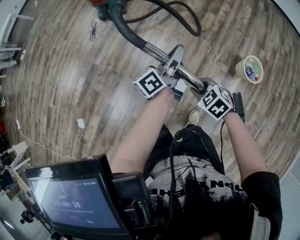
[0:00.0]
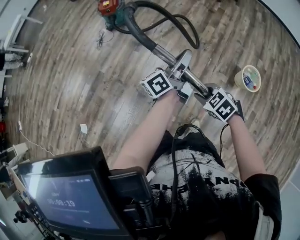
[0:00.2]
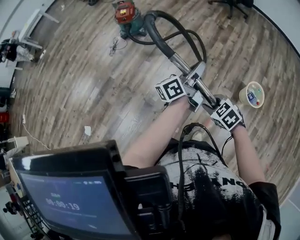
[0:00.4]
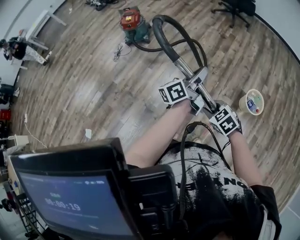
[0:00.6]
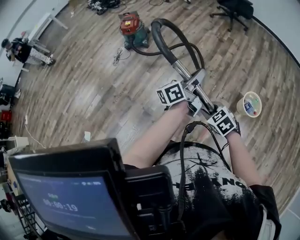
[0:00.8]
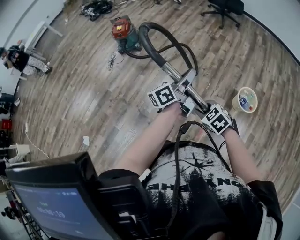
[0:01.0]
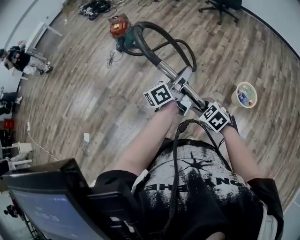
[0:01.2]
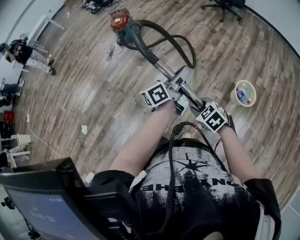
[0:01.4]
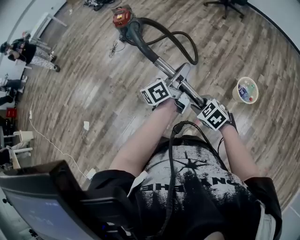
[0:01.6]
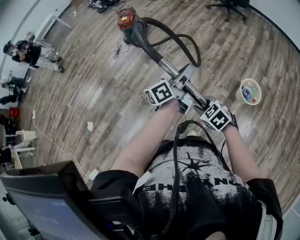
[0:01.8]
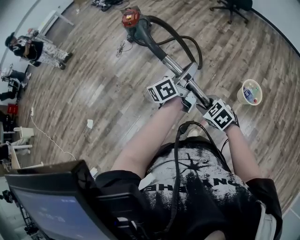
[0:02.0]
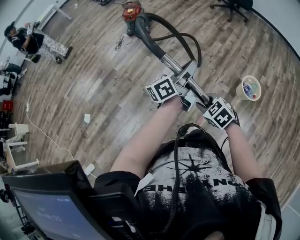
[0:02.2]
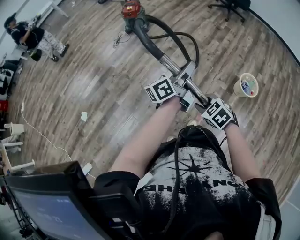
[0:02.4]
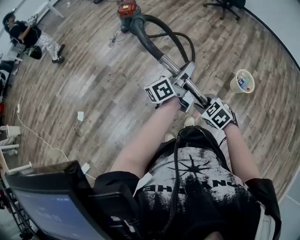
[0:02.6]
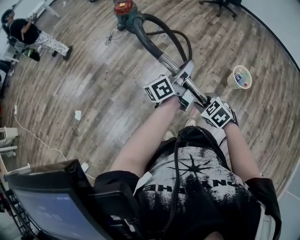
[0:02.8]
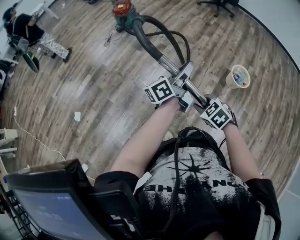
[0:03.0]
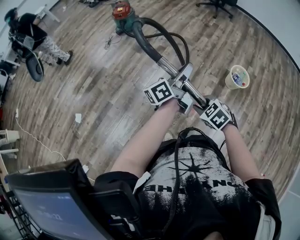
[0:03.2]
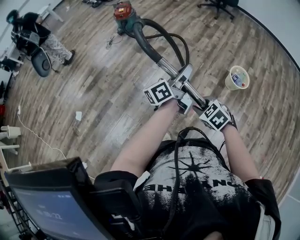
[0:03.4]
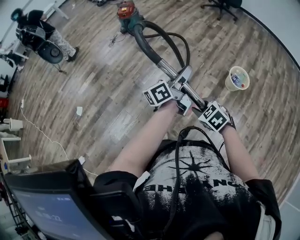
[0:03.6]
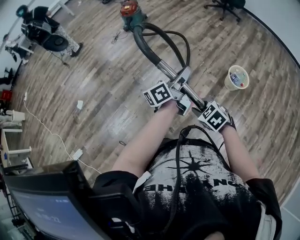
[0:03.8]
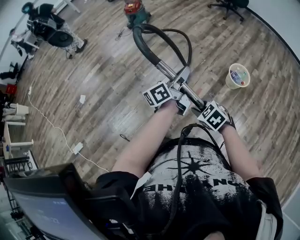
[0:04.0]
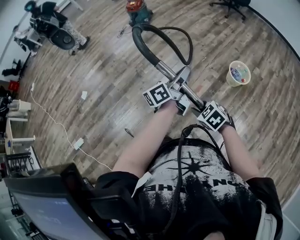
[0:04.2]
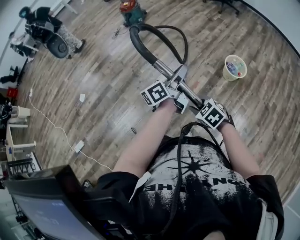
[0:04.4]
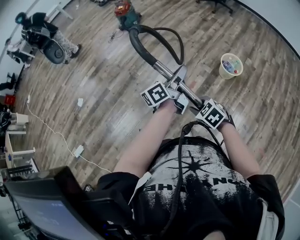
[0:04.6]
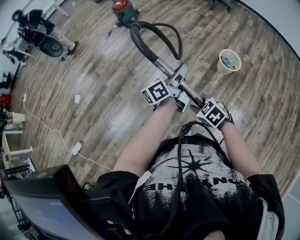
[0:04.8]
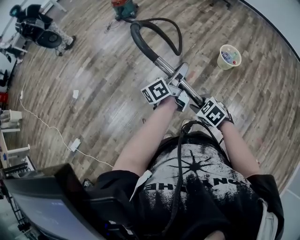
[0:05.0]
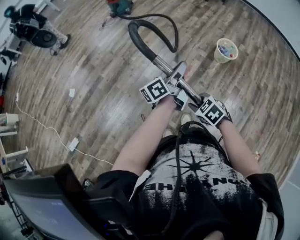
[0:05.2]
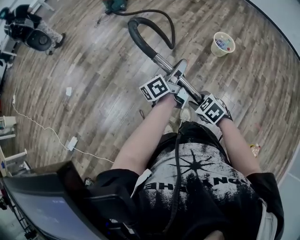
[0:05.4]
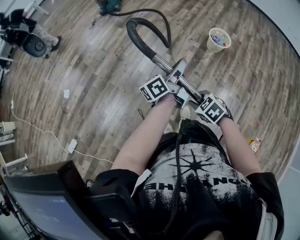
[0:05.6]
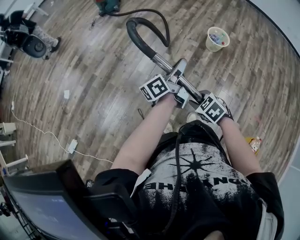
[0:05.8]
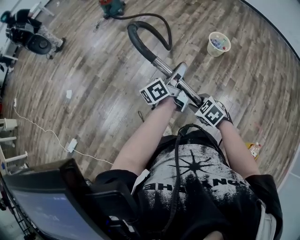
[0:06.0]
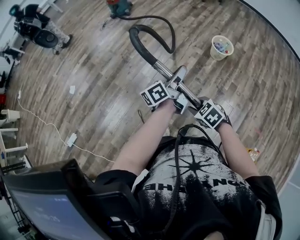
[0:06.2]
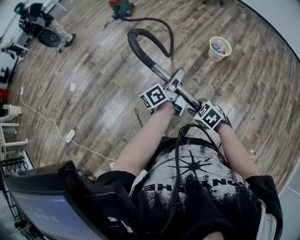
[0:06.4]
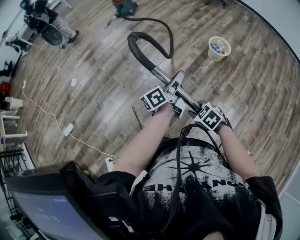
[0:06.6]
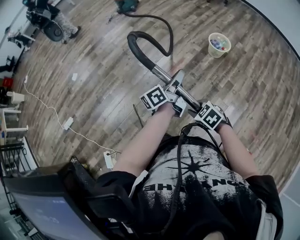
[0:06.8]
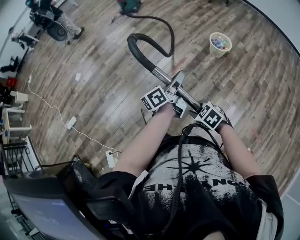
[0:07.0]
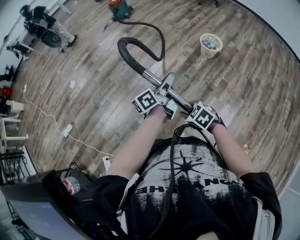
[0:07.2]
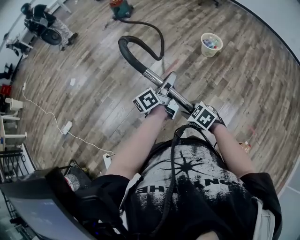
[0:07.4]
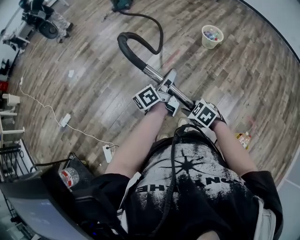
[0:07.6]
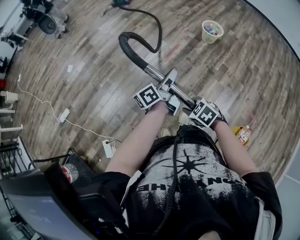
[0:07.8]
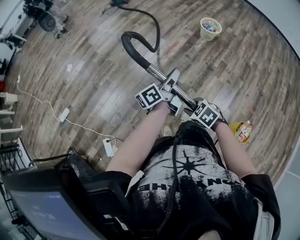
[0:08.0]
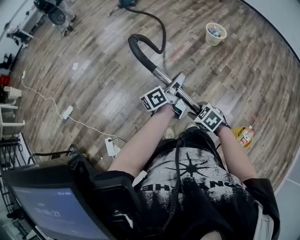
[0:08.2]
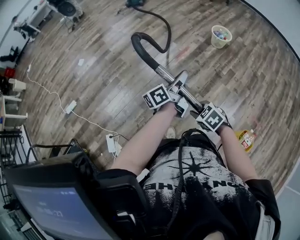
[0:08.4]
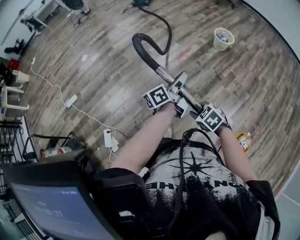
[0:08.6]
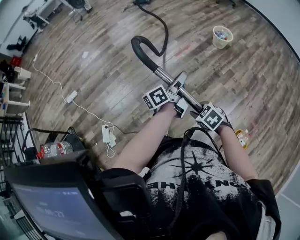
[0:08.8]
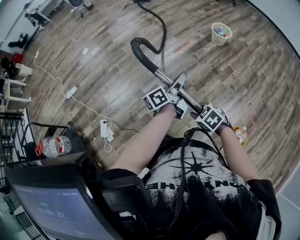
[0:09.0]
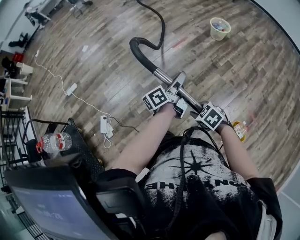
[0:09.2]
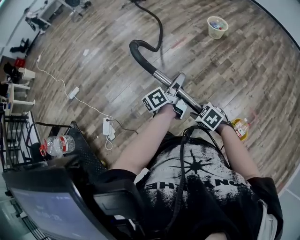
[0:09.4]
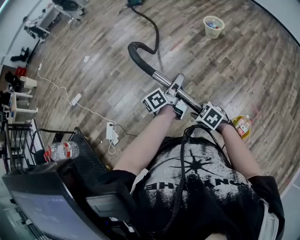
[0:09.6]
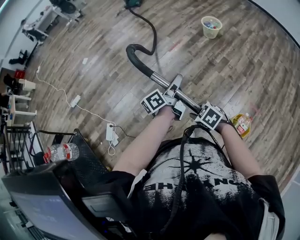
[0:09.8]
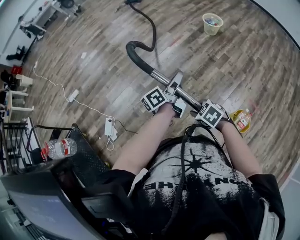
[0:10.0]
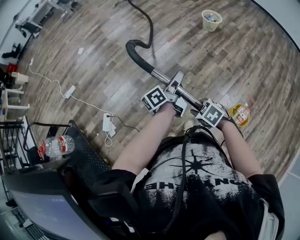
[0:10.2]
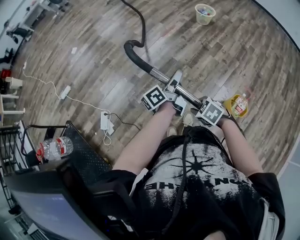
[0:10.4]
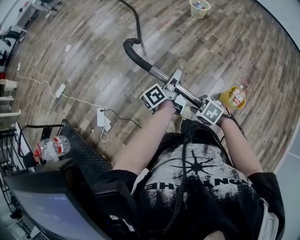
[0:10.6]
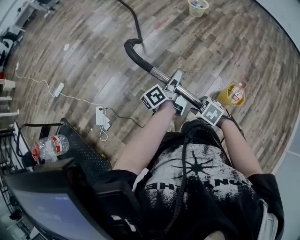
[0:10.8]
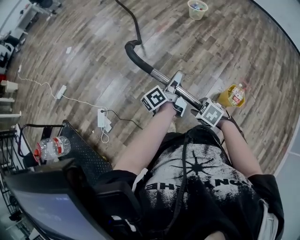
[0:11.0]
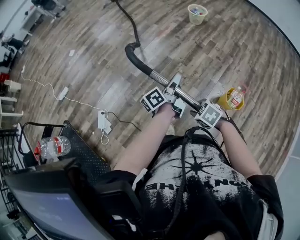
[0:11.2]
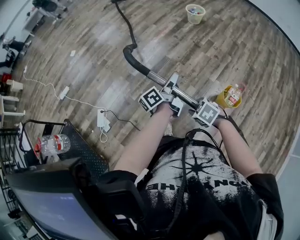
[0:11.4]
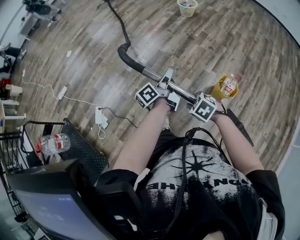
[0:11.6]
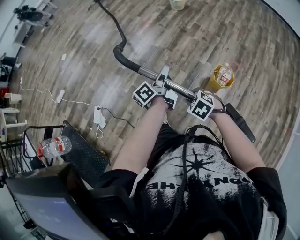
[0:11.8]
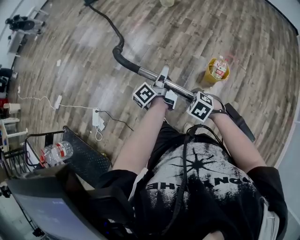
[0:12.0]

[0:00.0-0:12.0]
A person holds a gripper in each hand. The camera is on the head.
0:00.0 to 0:01.6: Both grippers move to the right, backward and upward, some 20 cm.
0:01.6 to 0:03.0: The two grippers go about 20 cm backward and to the left.
0:03.0 to 0:04.4: The grippers both shift backward and to the right by some 25 cm.
0:04.4 to 0:06.0: The two grippers go some 15 cm backward.
0:06.0 to 0:07.6: Both grippers travel together backward, roughly 30 cm.
0:07.6 to 0:09.0: Both grippers travel together backward, some 20 cm.
0:09.0 to 0:10.4: Both grippers move backward and to the left, about 20 cm.
0:10.4 to 0:12.0: The grippers both shift backward and to the right by about 25 cm.

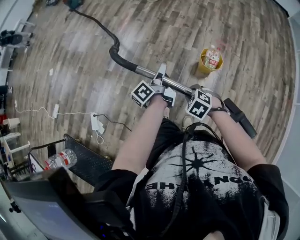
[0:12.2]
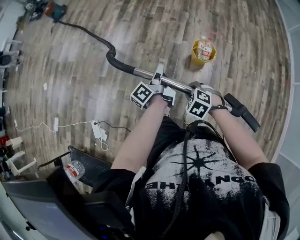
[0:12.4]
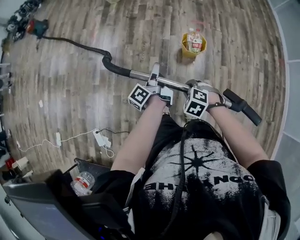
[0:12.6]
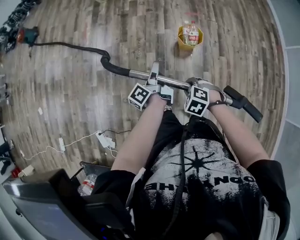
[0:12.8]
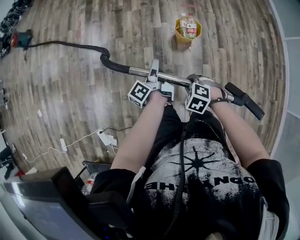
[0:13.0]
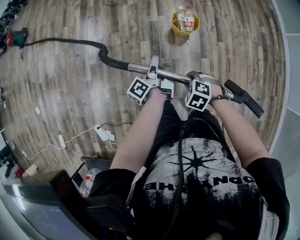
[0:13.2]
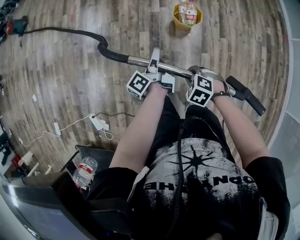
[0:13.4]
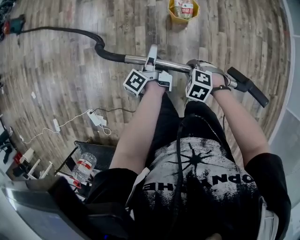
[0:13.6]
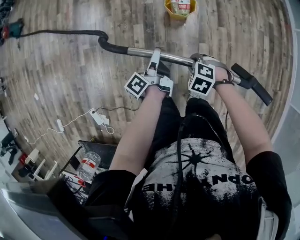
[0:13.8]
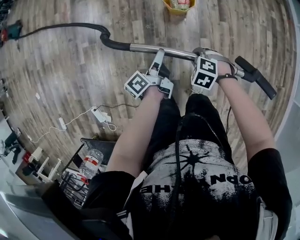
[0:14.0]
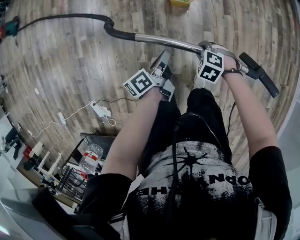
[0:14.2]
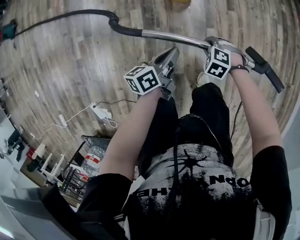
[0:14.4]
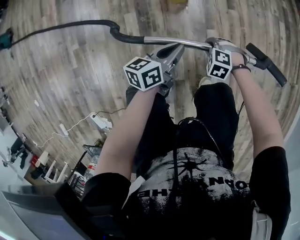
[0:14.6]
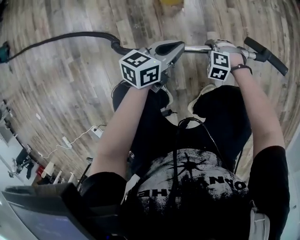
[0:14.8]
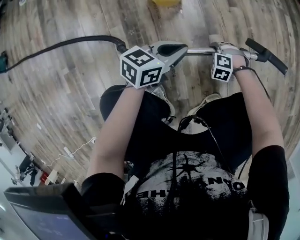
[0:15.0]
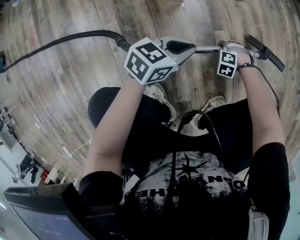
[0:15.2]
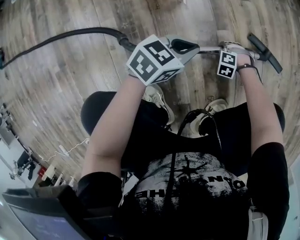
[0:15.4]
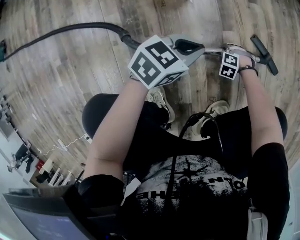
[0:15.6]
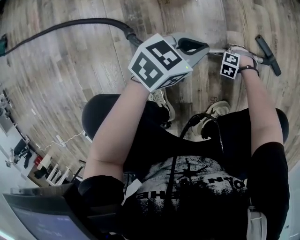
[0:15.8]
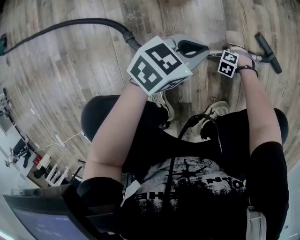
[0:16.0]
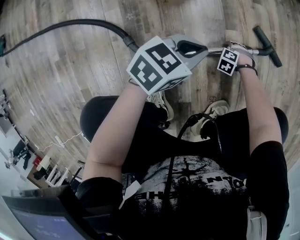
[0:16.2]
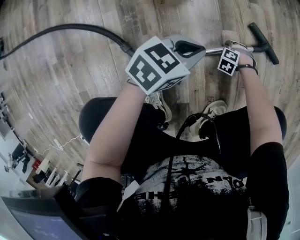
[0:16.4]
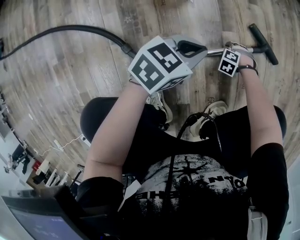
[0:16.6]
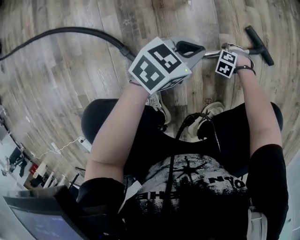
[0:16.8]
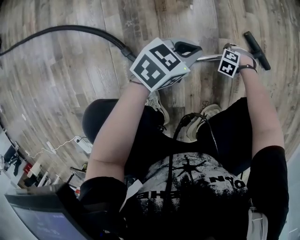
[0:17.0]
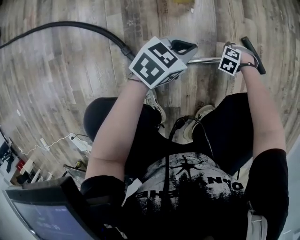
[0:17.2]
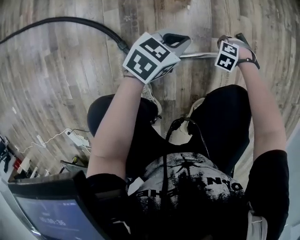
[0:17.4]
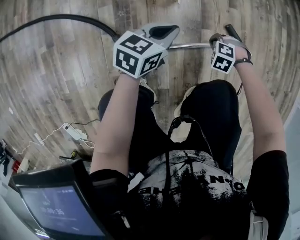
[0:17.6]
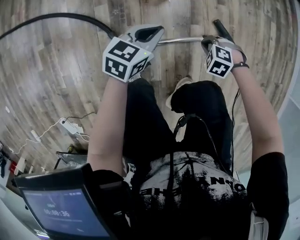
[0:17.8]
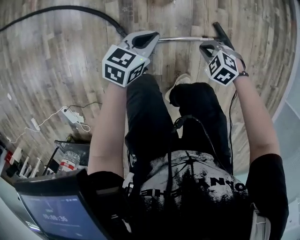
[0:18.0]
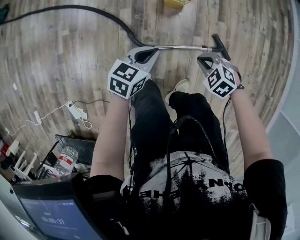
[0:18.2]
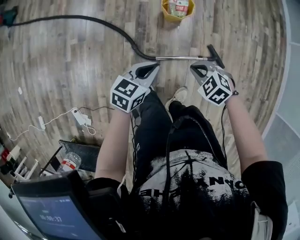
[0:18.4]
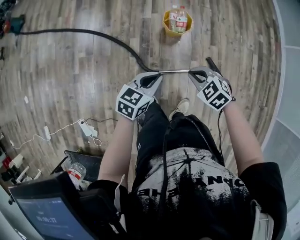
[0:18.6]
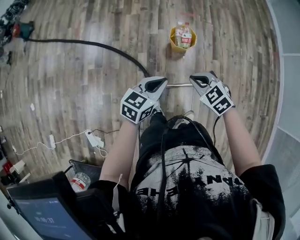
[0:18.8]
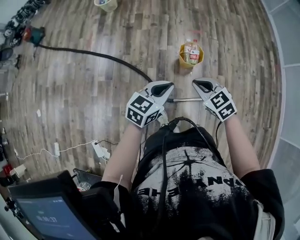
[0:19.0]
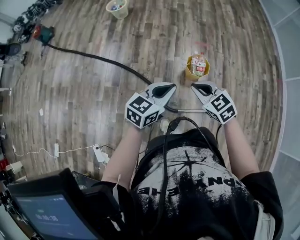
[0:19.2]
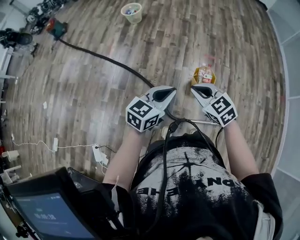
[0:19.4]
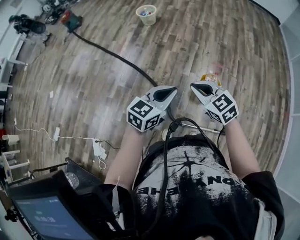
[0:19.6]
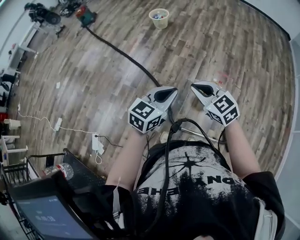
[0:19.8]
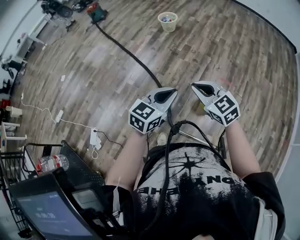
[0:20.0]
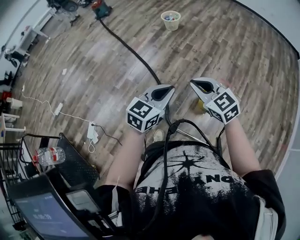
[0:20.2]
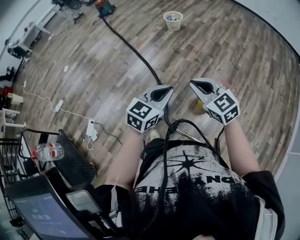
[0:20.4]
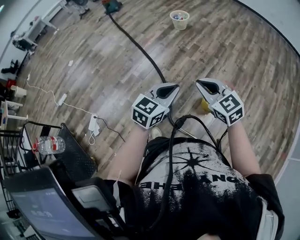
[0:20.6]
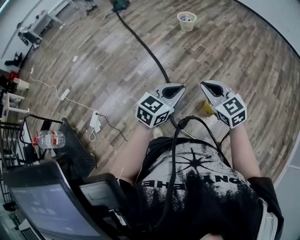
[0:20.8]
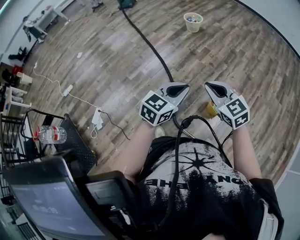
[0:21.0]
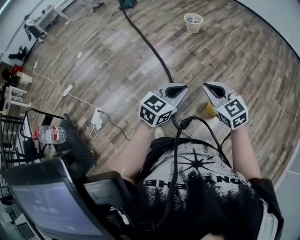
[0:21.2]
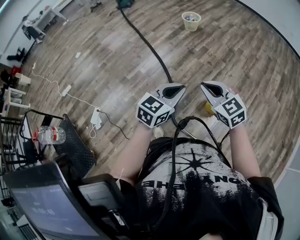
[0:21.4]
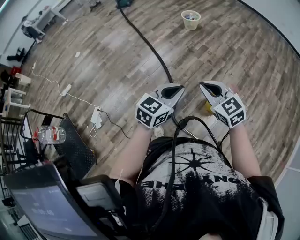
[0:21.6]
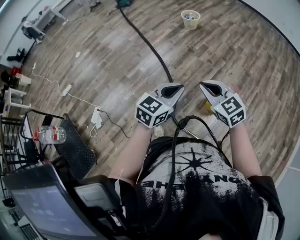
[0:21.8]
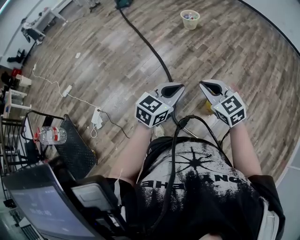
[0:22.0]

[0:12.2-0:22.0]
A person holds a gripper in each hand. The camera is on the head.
0:12.2 to 0:13.6: The grippers both shift downward by some 10 cm. The left gripper opens up.
0:13.6 to 0:15.0: The two grippers go about 40 cm downward. The left gripper turns by roughly 100 degrees, and closes its fingers.
0:15.0 to 0:16.4: The right gripper heads downward, covering about 20 cm, and opens its fingers; the left gripper travels downward by approximately 10 cm.
0:16.4 to 0:17.8: The left gripper heads upward, covering some 15 cm, and turns by roughly 30 degrees. The right gripper moves upward, approximately 35 cm, and closes.
0:17.8 to 0:19.2: Both grippers travel together upward, about 50 cm. The right gripper tilts its fingers about 50 degrees upward.
0:19.2 to 0:20.6: The left gripper goes approximately 10 cm upward, and rotates roughly 30 degrees, while the right gripper goes roughly 15 cm upward, and turns by about 30 degrees.
0:20.6 to 0:22.0: The grippers make only small movements.

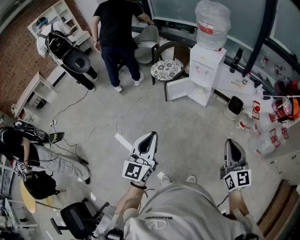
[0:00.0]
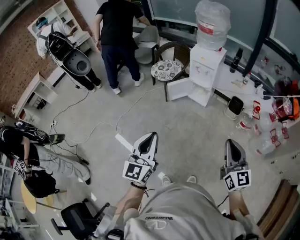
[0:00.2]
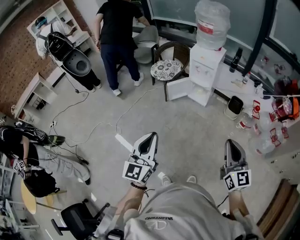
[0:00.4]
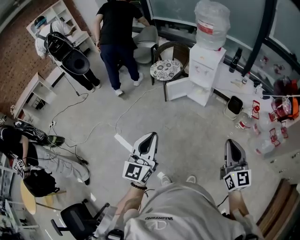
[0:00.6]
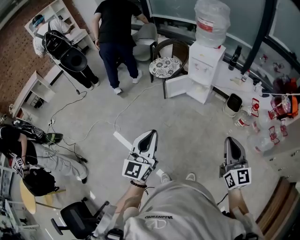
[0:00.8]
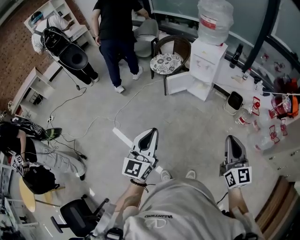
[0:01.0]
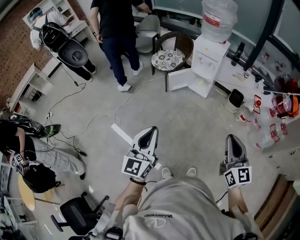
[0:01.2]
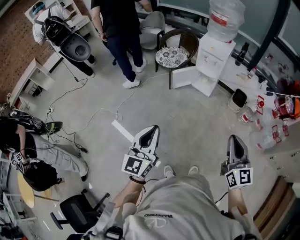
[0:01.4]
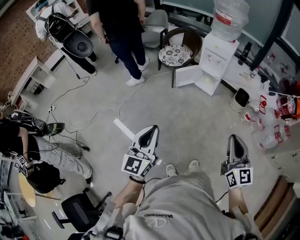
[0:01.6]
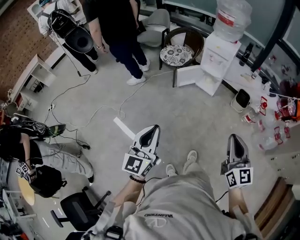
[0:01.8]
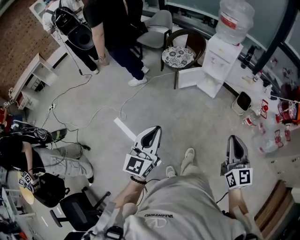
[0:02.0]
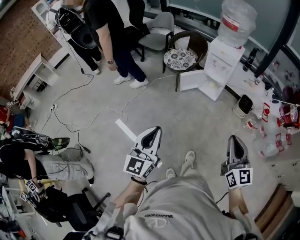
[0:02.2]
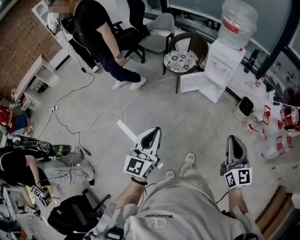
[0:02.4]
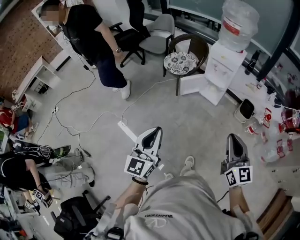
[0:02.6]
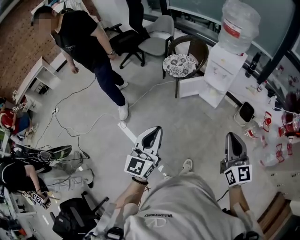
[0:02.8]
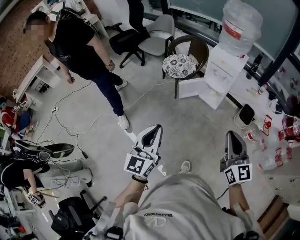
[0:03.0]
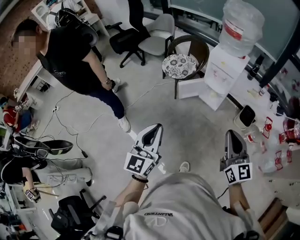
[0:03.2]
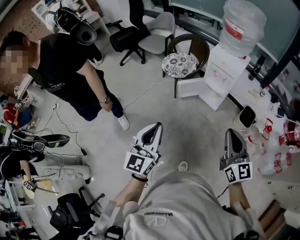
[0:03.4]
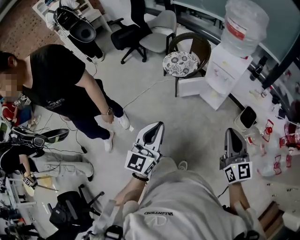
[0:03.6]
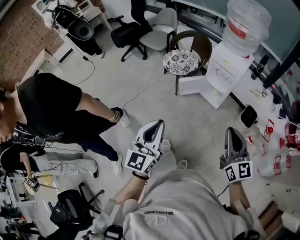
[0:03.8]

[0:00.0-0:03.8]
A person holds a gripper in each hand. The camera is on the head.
0:00.0 to 0:01.2: The grippers stay close to where they were, moving slightly.
0:01.2 to 0:02.6: The right gripper heads forward and to the left, covering approximately 10 cm. Meanwhile the left gripper shifts approximately 10 cm forward.
0:02.6 to 0:03.8: The grippers both shift forward and to the right by some 15 cm.
